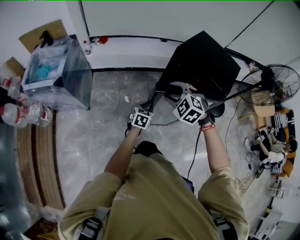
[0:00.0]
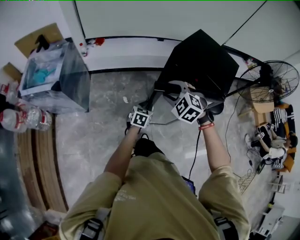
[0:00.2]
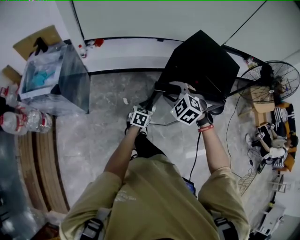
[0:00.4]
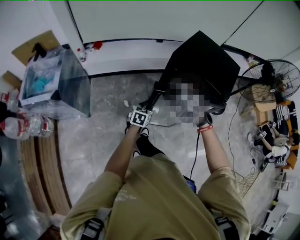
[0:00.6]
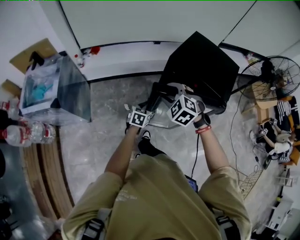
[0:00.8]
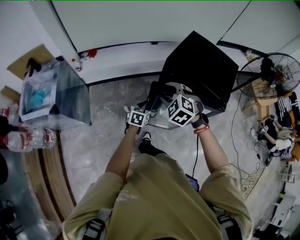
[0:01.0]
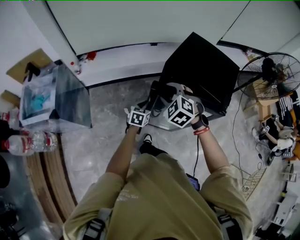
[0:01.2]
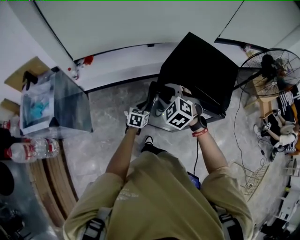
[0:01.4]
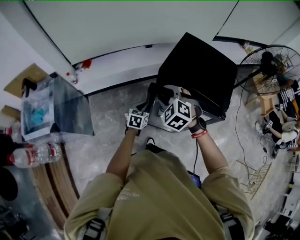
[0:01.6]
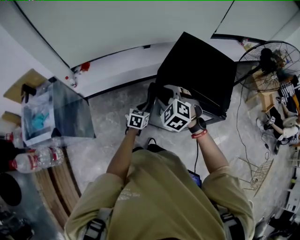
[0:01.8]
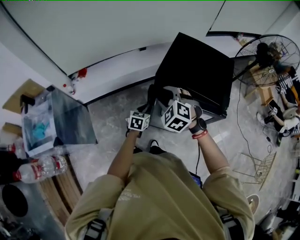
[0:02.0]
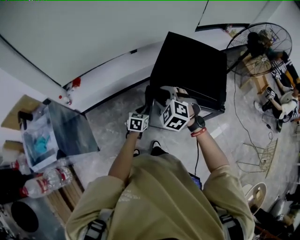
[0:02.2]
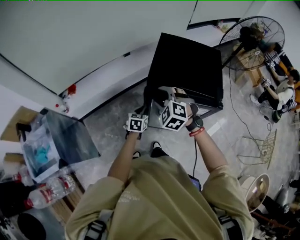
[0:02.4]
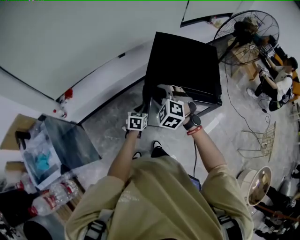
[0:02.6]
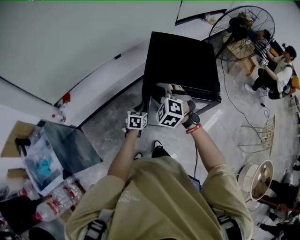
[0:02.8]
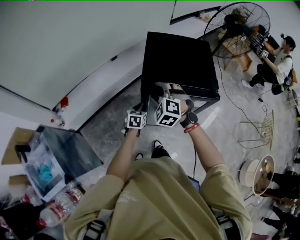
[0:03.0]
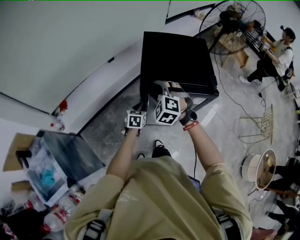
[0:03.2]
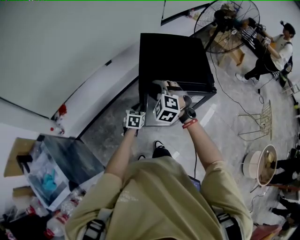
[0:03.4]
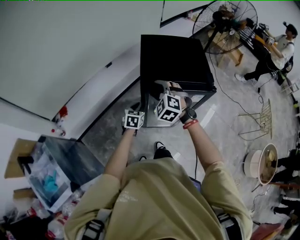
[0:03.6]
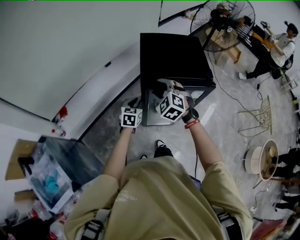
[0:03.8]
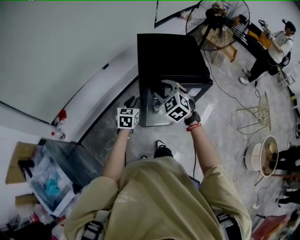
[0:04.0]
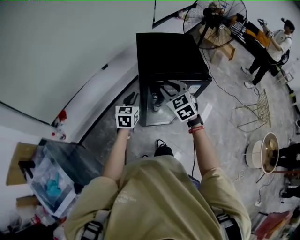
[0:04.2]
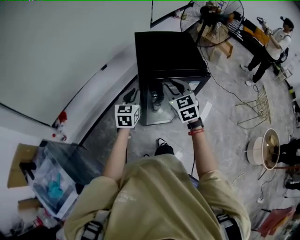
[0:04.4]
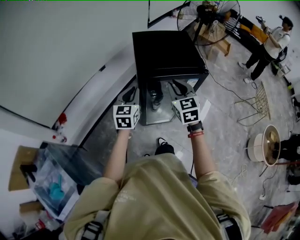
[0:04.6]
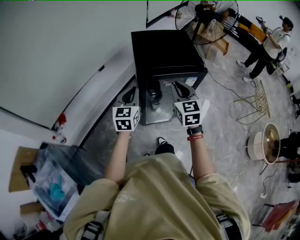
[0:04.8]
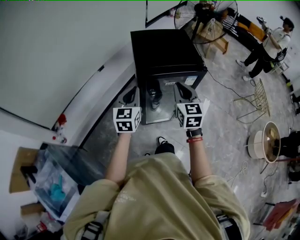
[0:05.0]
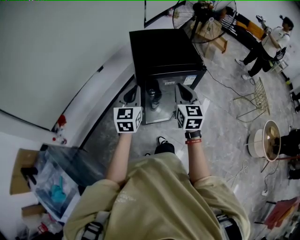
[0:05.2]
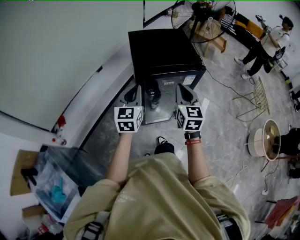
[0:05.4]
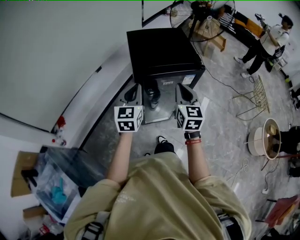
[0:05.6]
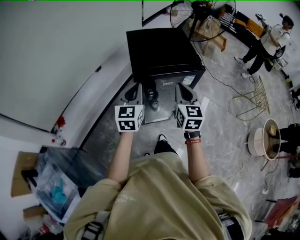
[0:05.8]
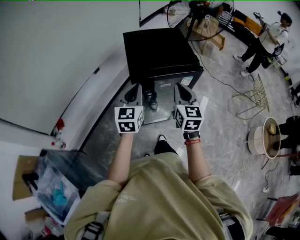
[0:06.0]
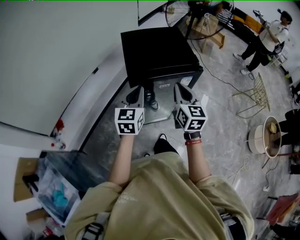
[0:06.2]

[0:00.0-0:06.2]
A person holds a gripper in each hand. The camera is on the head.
0.0 to 1.6 s: The two grippers go roughly 20 cm forward.
1.6 to 3.2 s: The two grippers go approximately 5 cm forward. The right gripper changes its angle by approximately 20 degrees.
3.2 to 4.6 s: The right gripper moves backward, upward and to the right, some 15 cm, twists about 50 degrees clockwise, seen from behind, and closes up, while the left gripper moves upward, approximately 20 cm, and turns by some 30 degrees.
4.6 to 6.2 s: The grippers both shift to the right by some 5 cm. The right gripper rotates some 20 degrees.

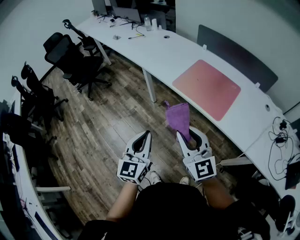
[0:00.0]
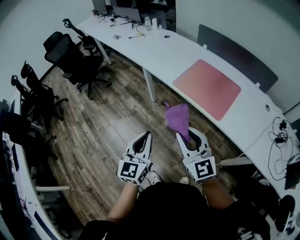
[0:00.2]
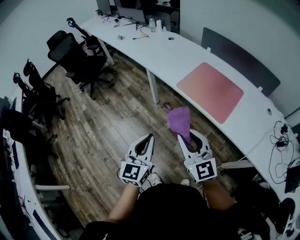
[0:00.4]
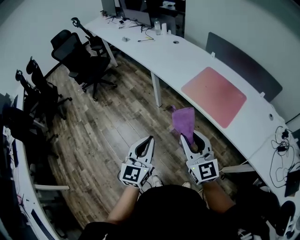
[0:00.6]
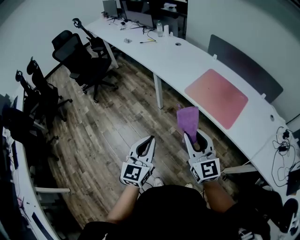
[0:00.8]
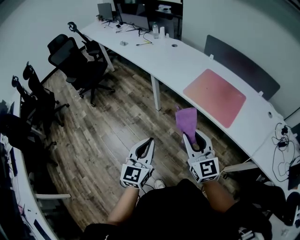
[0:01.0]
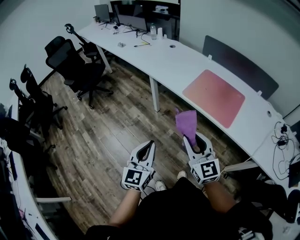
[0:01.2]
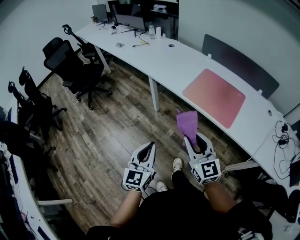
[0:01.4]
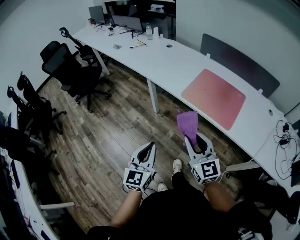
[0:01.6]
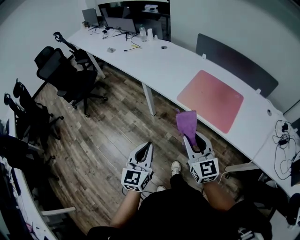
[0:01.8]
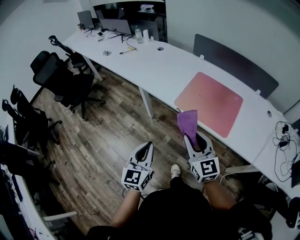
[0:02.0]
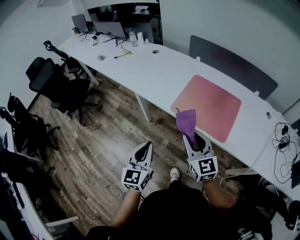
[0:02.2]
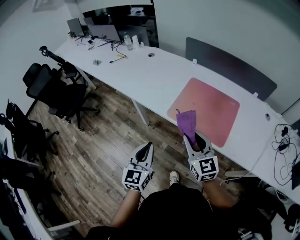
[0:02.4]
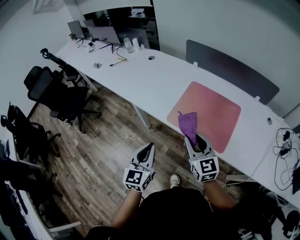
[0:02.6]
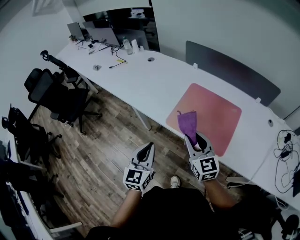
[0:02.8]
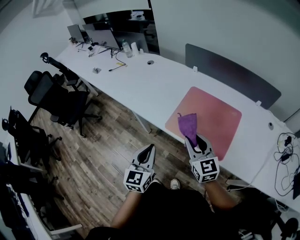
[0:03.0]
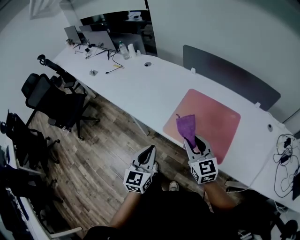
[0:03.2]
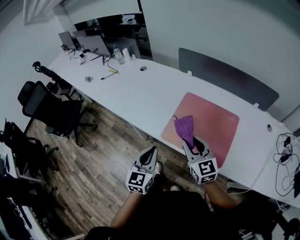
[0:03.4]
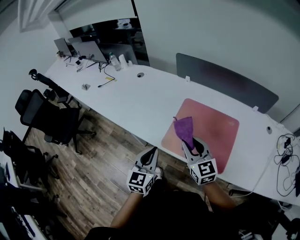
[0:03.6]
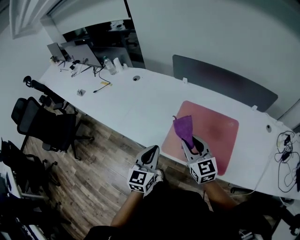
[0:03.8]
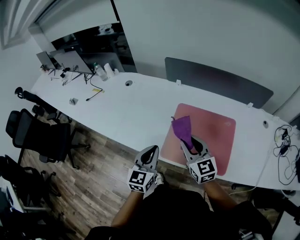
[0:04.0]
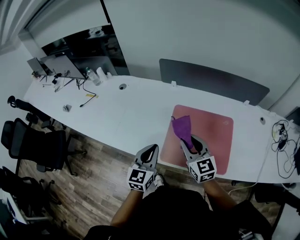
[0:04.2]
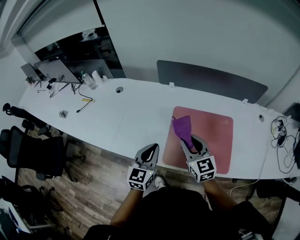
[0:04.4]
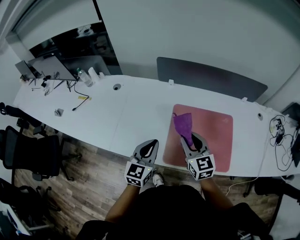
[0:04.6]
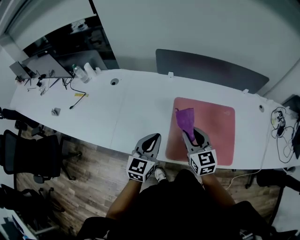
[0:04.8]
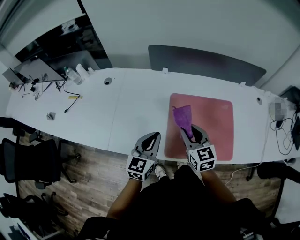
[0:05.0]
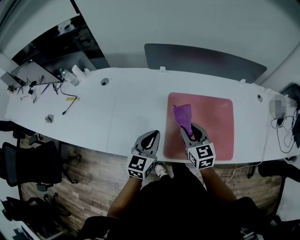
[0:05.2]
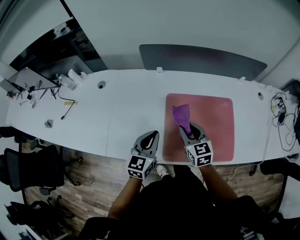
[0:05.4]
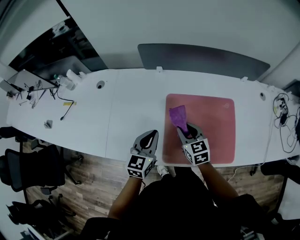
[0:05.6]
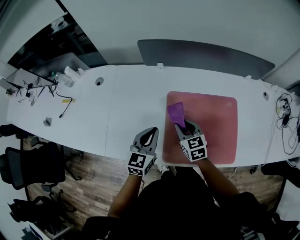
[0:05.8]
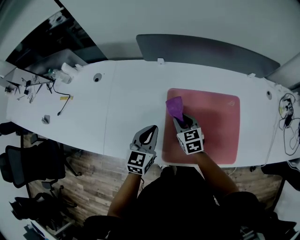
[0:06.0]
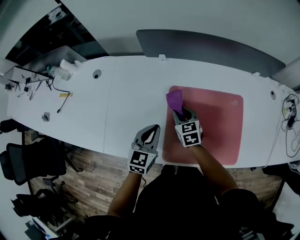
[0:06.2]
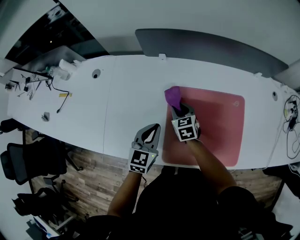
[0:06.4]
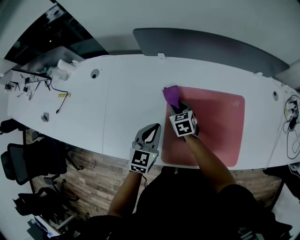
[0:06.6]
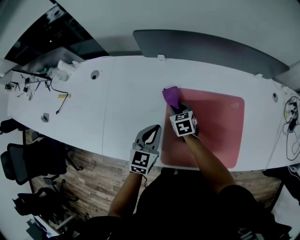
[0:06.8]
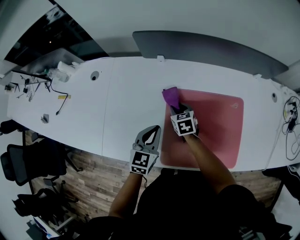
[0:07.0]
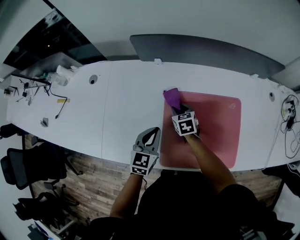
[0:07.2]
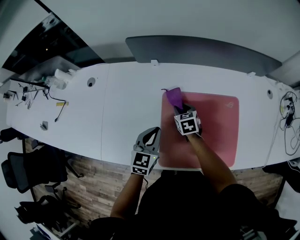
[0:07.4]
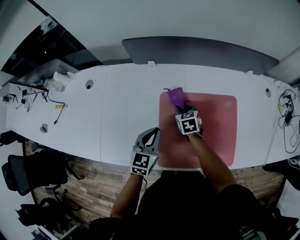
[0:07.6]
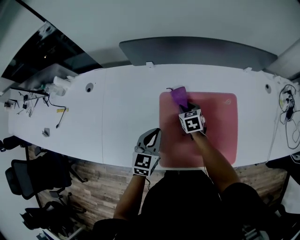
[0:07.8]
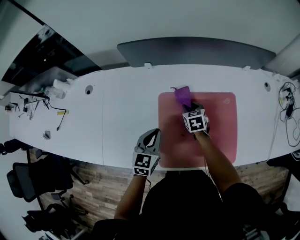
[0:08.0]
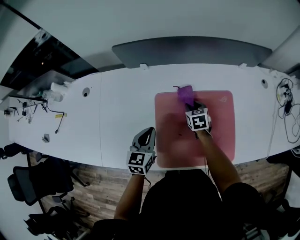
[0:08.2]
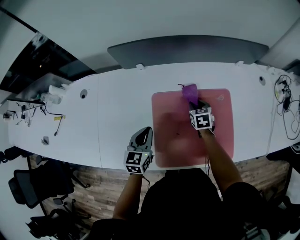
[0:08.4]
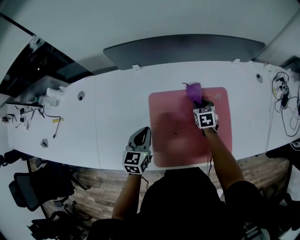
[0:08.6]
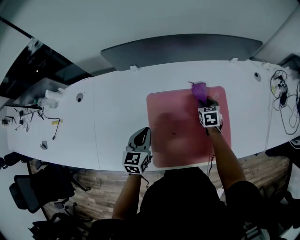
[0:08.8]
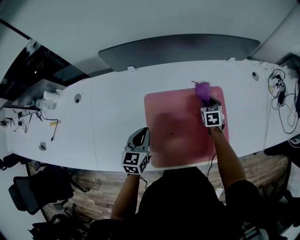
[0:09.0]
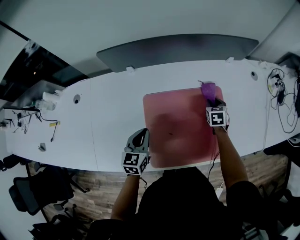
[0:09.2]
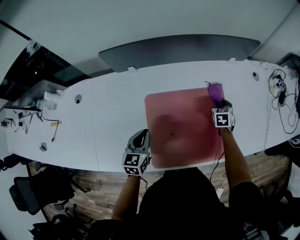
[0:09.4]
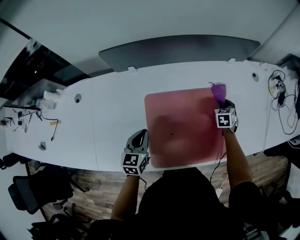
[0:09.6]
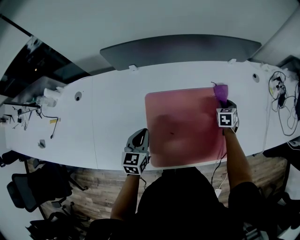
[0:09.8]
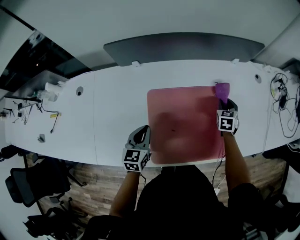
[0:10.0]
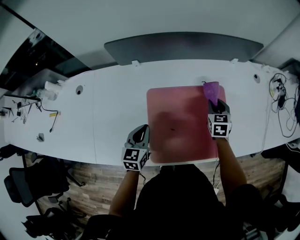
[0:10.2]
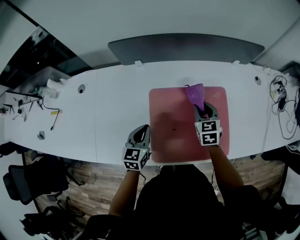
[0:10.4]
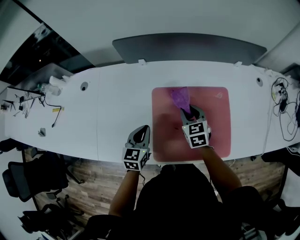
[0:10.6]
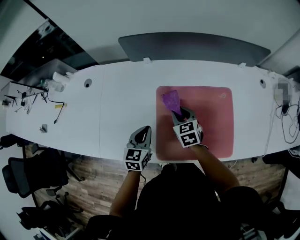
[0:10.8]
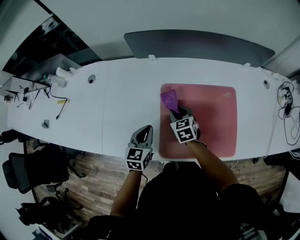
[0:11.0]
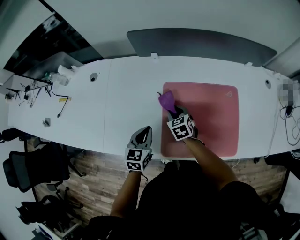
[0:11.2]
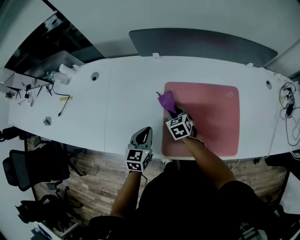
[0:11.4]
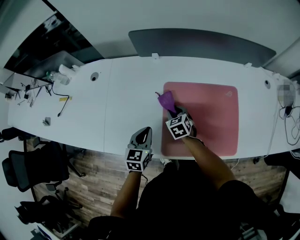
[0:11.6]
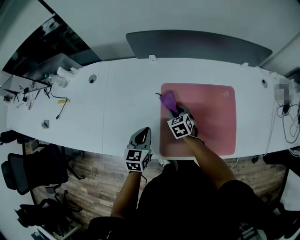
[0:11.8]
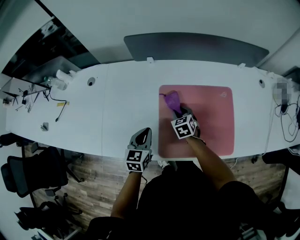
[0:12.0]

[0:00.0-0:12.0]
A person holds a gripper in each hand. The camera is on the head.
0.0 to 1.6 s: The right gripper heads forward, covering about 5 cm. The left gripper heads to the left, covering some 5 cm.
1.6 to 3.0 s: The grippers both shift forward and to the right by approximately 25 cm.
3.0 to 4.4 s: The two grippers go approximately 20 cm forward. The left gripper rotates roughly 20 degrees.
4.4 to 6.0 s: The left gripper is displaced forward and downward by some 15 cm. The right gripper goes approximately 20 cm downward and forward, and turns by approximately 20 degrees.
6.0 to 7.6 s: The right gripper shifts approximately 10 cm forward, downward and to the right. The left gripper changes place by some 5 cm.
7.6 to 9.0 s: The right gripper heads to the right, covering roughly 20 cm.
9.0 to 10.4 s: The right gripper is displaced upward, to the left and backward by some 15 cm.
10.4 to 12.0 s: The left gripper ends up some 5 cm from where it was. Meanwhile the right gripper travels to the left and downward by some 15 cm.

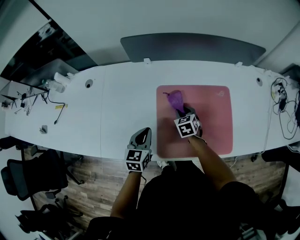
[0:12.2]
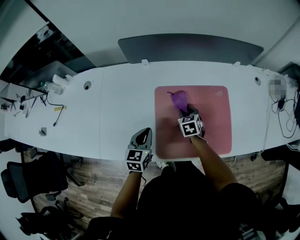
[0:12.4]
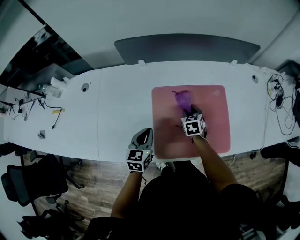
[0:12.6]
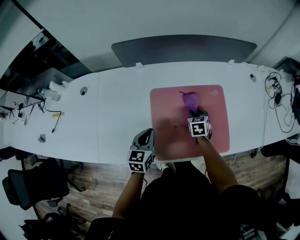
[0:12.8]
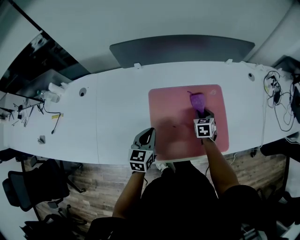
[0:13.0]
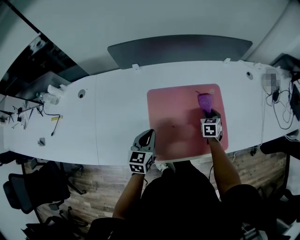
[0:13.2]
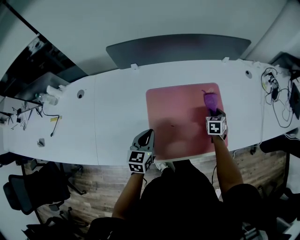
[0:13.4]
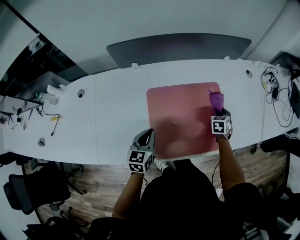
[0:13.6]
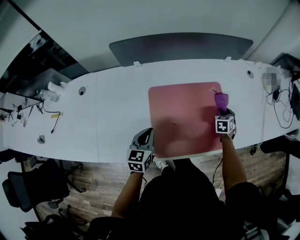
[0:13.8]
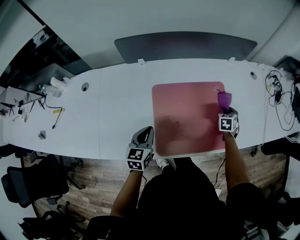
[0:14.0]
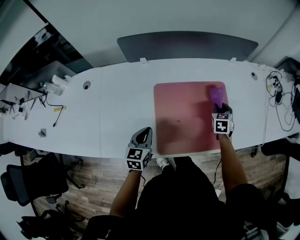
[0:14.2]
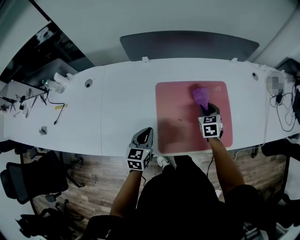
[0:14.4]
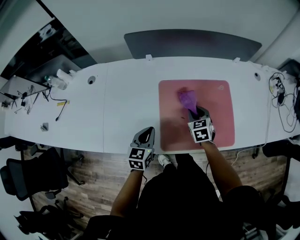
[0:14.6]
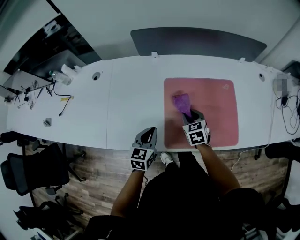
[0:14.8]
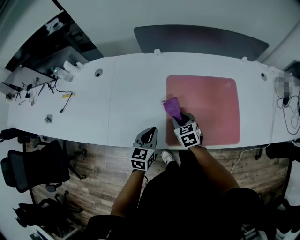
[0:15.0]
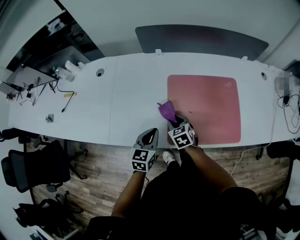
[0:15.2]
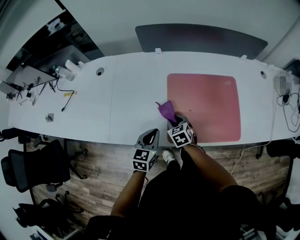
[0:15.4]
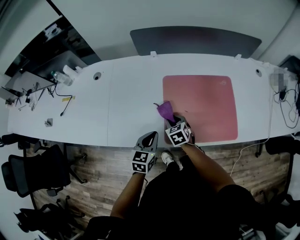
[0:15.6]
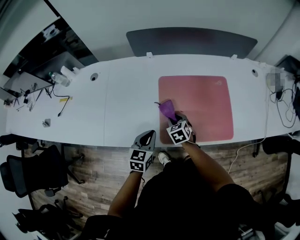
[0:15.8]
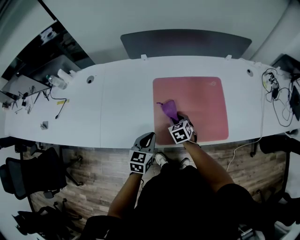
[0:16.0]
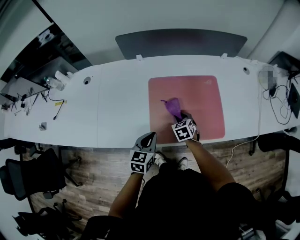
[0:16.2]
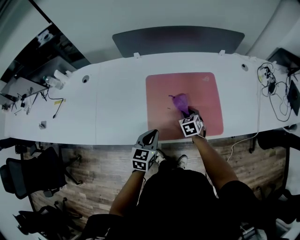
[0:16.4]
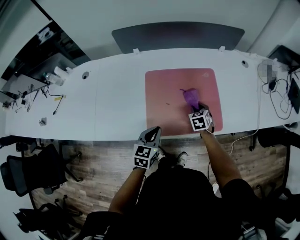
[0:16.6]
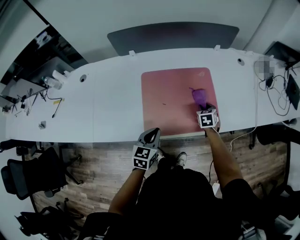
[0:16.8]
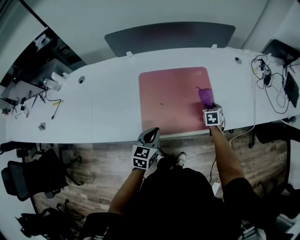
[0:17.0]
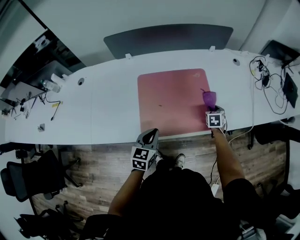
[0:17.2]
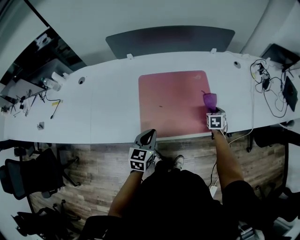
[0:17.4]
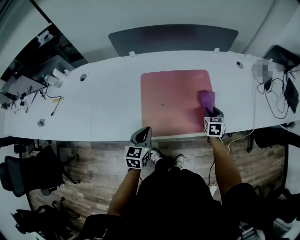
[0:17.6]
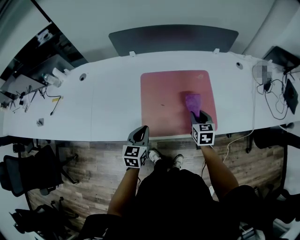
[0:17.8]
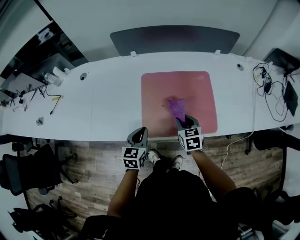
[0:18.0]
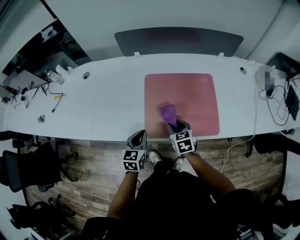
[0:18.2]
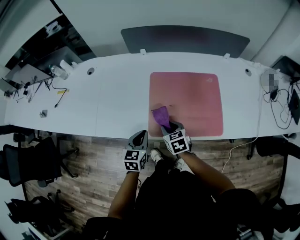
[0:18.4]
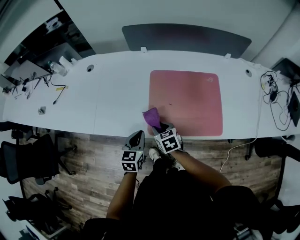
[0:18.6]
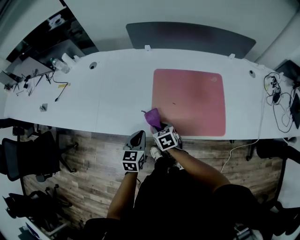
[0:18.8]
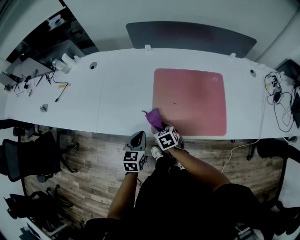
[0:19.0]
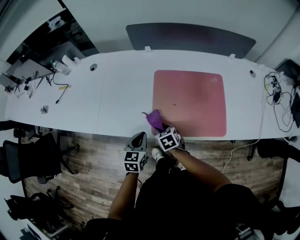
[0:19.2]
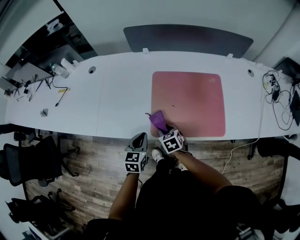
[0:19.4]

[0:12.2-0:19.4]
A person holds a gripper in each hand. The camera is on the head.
12.2 to 13.6 s: The left gripper heads to the right, covering approximately 5 cm; the right gripper goes about 30 cm to the right, and swivels approximately 30 degrees.
13.6 to 15.0 s: The right gripper ends up some 35 cm from where it was, and rotates roughly 40 degrees, while the left gripper moves approximately 10 cm.
15.0 to 16.6 s: The right gripper travels to the right by approximately 20 cm, and changes its angle by approximately 20 degrees; the left gripper travels to the right by about 10 cm.
16.6 to 18.0 s: The right gripper moves backward and upward, some 10 cm, and goes to the right and returns, roughly 15 cm each way.
18.0 to 19.4 s: The left gripper is displaced to the left by some 5 cm; the right gripper is displaced to the left and downward by about 15 cm, and turns by some 20 degrees.
